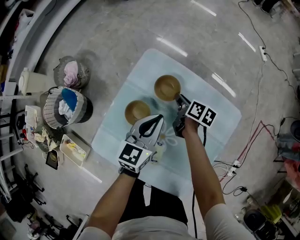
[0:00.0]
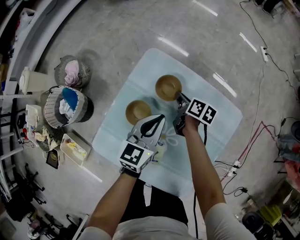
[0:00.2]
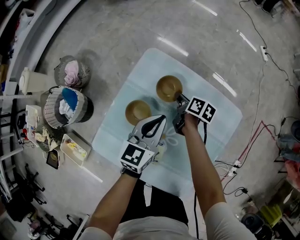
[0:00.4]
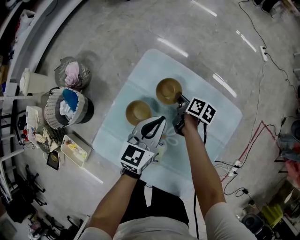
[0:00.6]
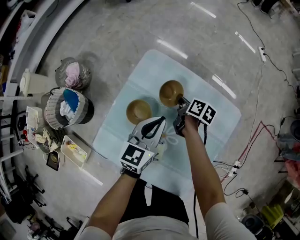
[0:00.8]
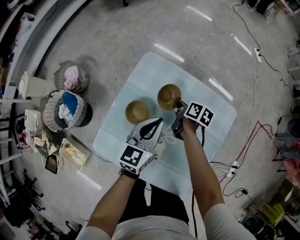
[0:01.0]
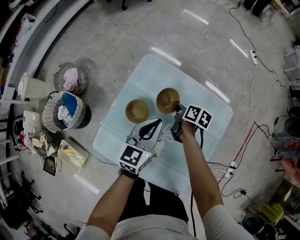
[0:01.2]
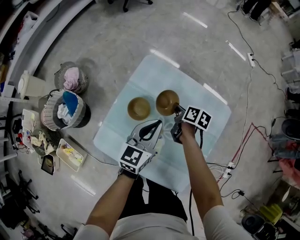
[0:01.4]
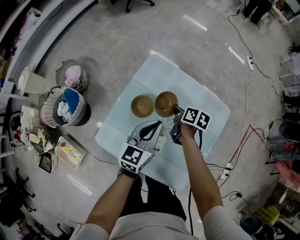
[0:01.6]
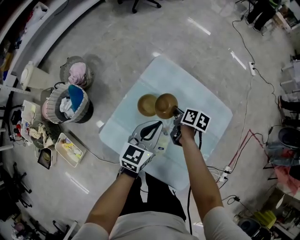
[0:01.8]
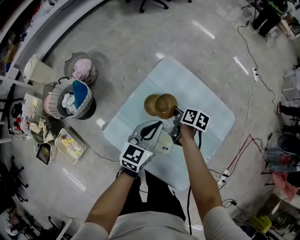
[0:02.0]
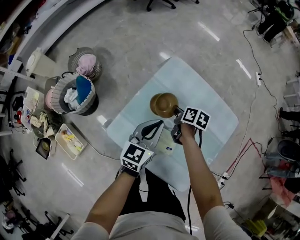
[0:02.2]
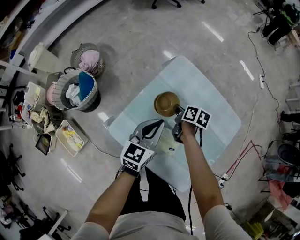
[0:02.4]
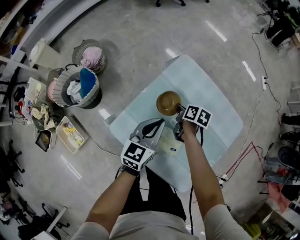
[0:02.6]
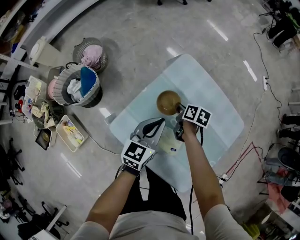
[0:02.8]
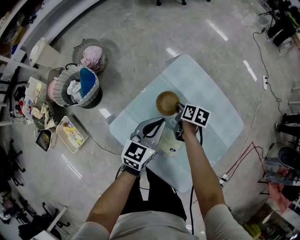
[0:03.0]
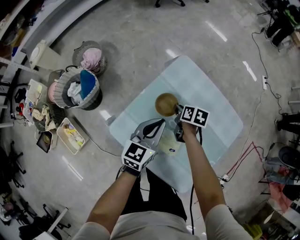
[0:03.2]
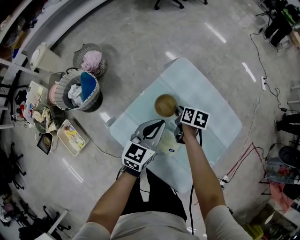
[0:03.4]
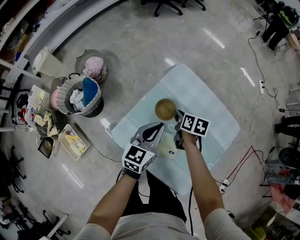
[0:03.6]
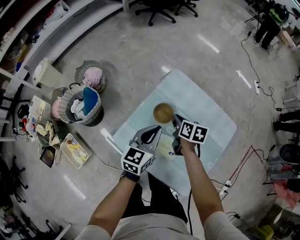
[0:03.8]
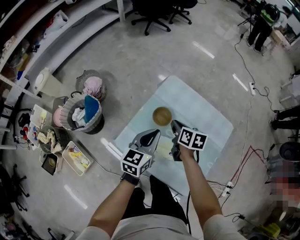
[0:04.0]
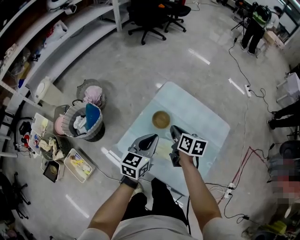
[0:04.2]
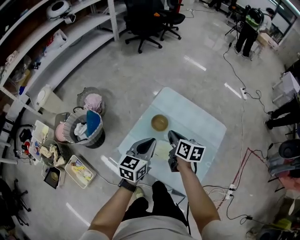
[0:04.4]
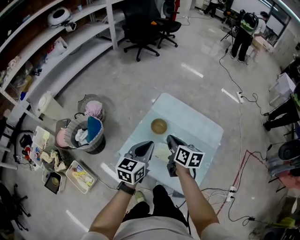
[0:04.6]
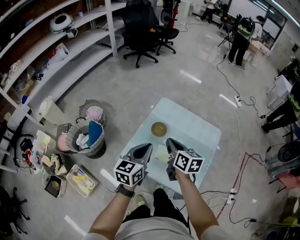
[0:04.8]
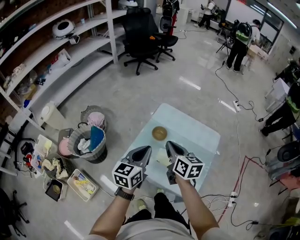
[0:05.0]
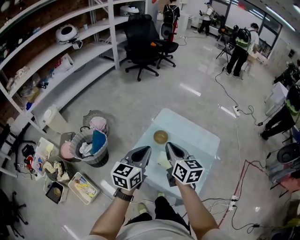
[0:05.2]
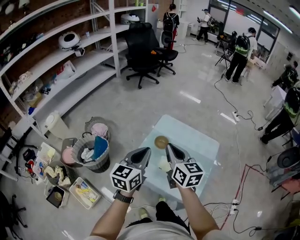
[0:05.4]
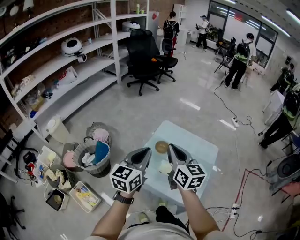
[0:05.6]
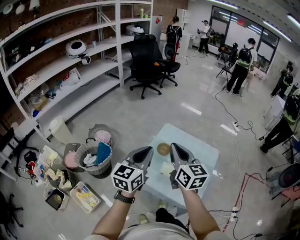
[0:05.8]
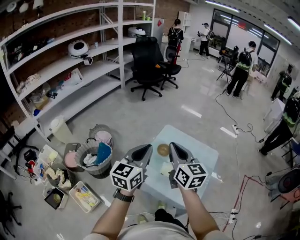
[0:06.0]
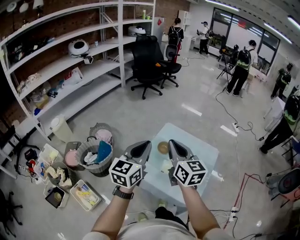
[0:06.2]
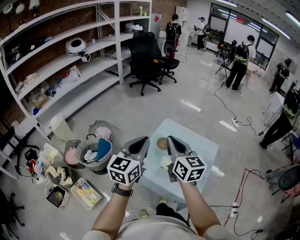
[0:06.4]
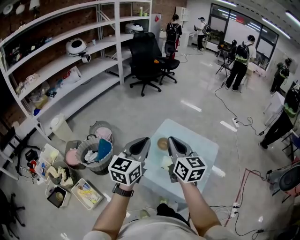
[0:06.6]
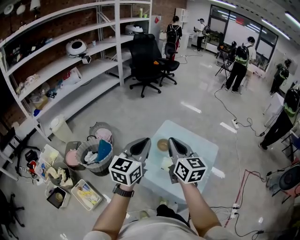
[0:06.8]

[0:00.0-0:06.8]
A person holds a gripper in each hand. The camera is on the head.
0:00.0 to 0:01.4: Both grippers move backward, about 5 cm.
0:01.4 to 0:02.8: Both grippers travel together to the left, approximately 10 cm.
0:02.8 to 0:04.0: The left gripper travels upward by about 5 cm. Meanwhile the right gripper heads upward, covering roughly 15 cm.
0:04.0 to 0:05.4: Both grippers travel together upward and backward, some 30 cm. The right gripper rotates some 40 degrees.
0:05.4 to 0:06.8: The grippers both shift upward by approximately 5 cm.

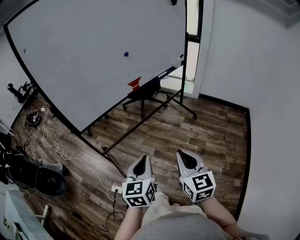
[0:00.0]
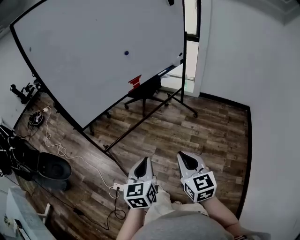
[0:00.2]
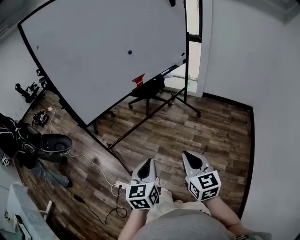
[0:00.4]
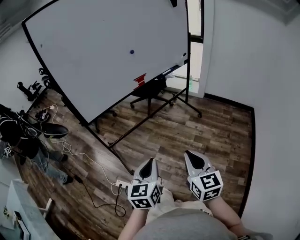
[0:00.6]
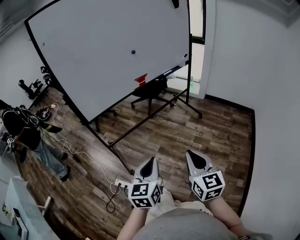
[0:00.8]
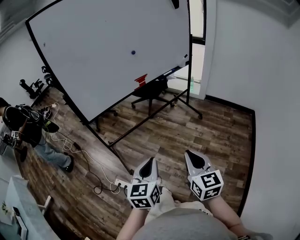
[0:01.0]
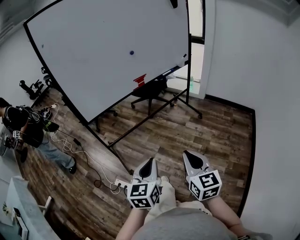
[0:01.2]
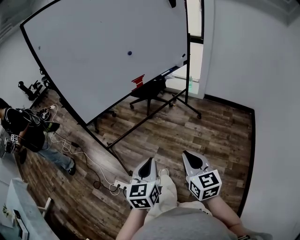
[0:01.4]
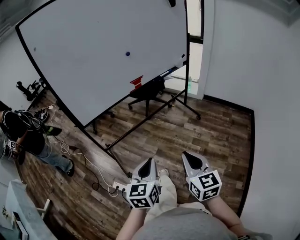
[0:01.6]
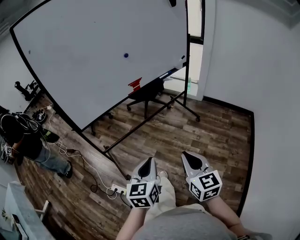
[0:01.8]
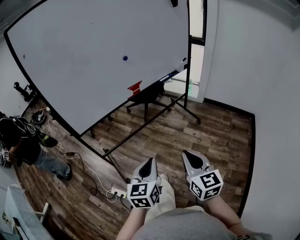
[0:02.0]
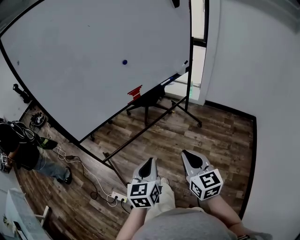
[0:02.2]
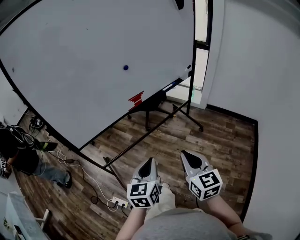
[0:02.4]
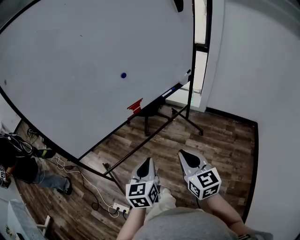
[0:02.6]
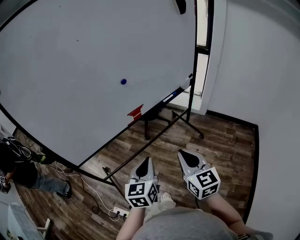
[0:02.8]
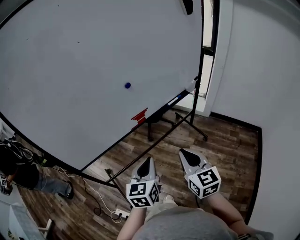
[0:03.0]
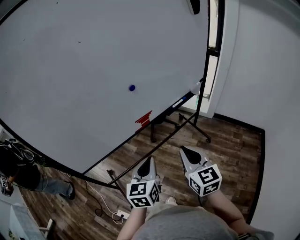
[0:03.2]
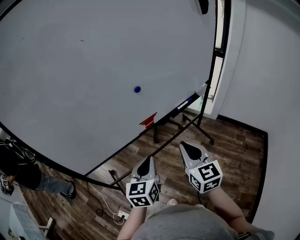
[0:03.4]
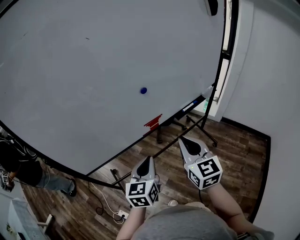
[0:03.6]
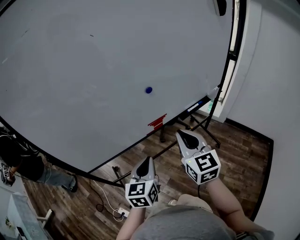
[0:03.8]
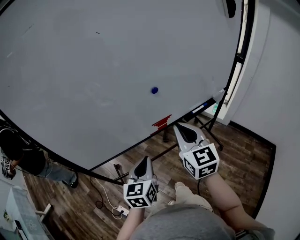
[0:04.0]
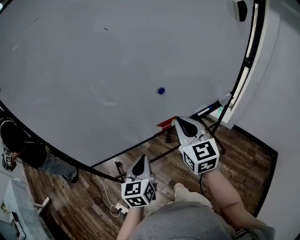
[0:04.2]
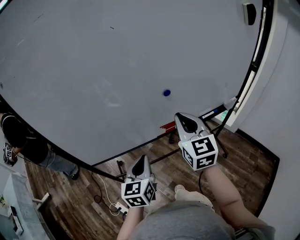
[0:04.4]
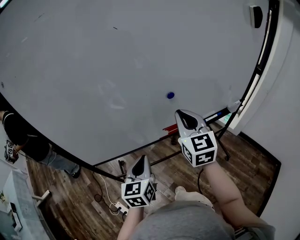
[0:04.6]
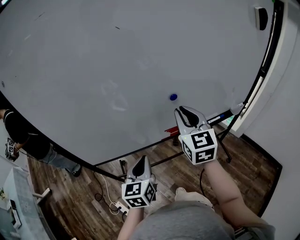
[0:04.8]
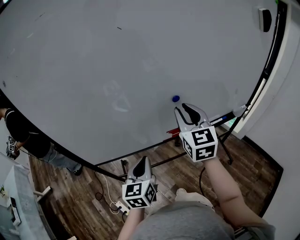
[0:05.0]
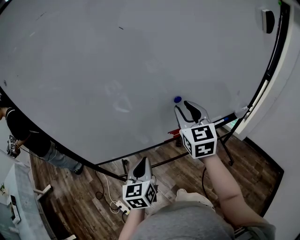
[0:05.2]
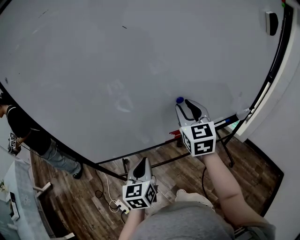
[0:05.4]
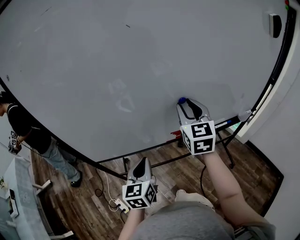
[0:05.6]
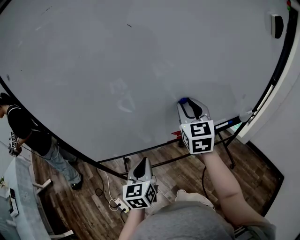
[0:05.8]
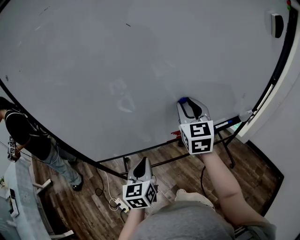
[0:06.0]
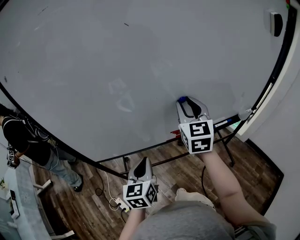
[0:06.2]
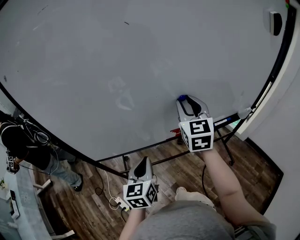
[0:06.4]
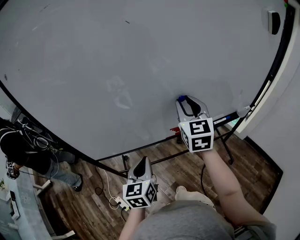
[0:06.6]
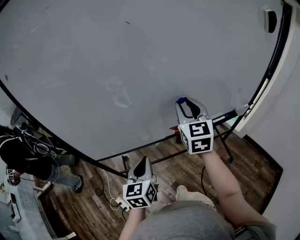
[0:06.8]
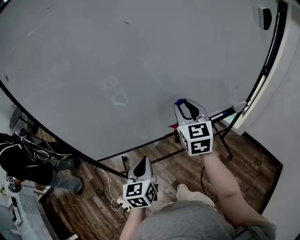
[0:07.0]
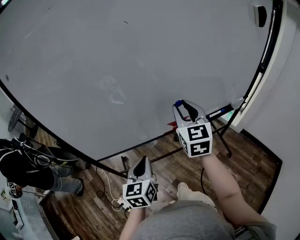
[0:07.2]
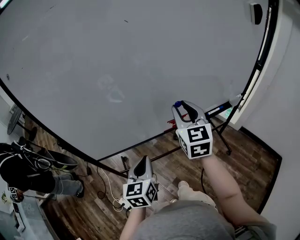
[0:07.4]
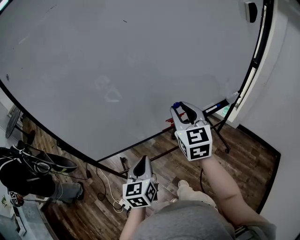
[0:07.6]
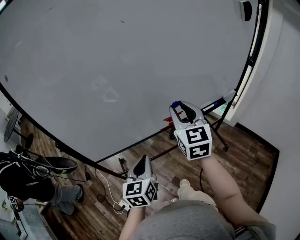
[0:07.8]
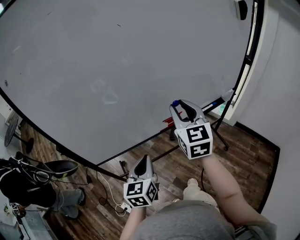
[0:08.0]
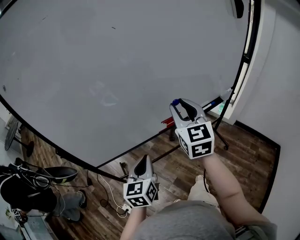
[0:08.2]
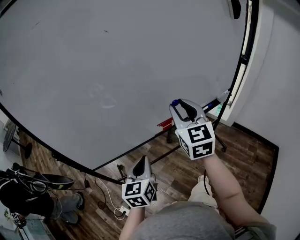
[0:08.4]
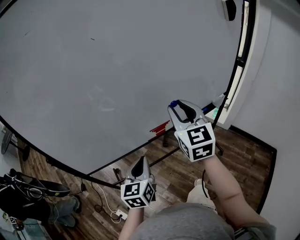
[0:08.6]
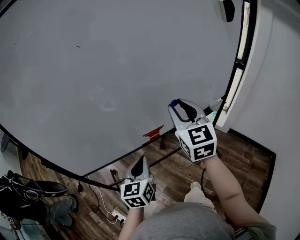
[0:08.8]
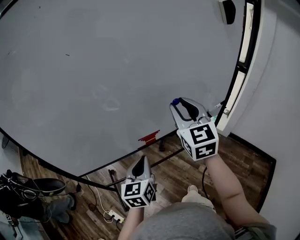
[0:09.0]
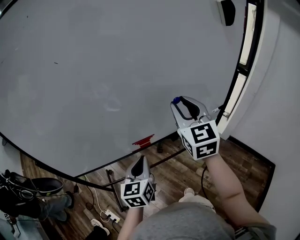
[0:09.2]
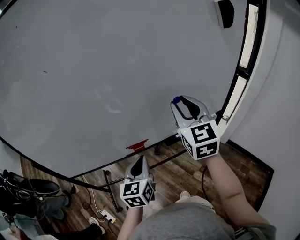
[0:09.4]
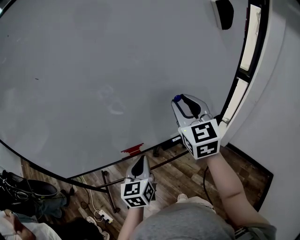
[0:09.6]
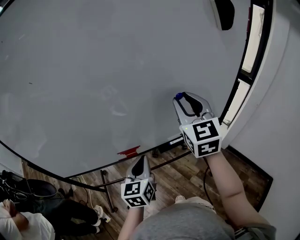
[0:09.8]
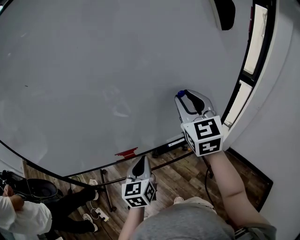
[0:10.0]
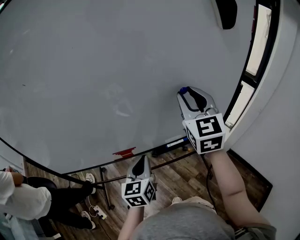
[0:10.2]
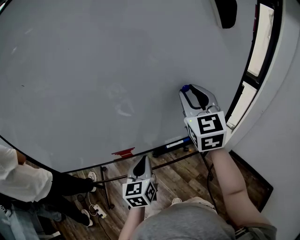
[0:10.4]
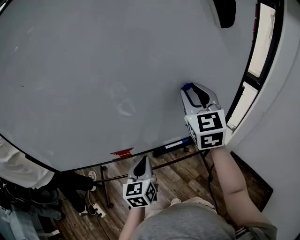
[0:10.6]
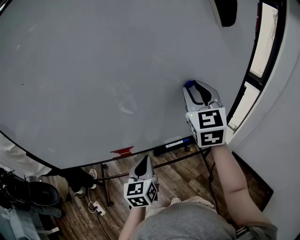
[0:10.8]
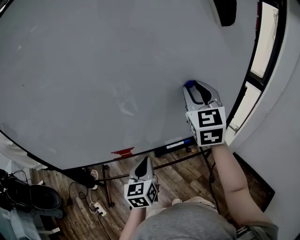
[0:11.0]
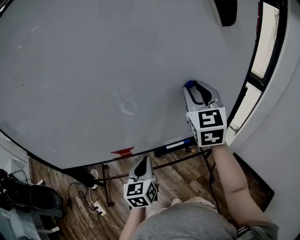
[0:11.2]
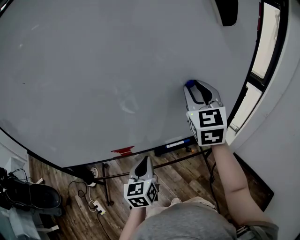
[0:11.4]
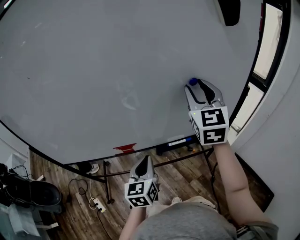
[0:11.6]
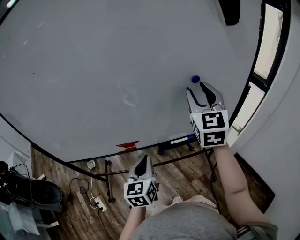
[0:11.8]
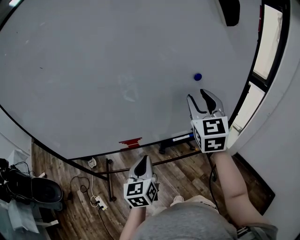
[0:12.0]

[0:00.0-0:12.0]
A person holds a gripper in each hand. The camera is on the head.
0:00.0 to 0:01.6: The left gripper goes some 10 cm backward and to the right, while the right gripper moves to the right, roughly 5 cm.
0:01.6 to 0:03.0: Both grippers travel together forward, about 35 cm.
0:03.0 to 0:04.4: The right gripper shifts some 25 cm forward, while the left gripper travels forward and to the left by about 15 cm.
0:04.4 to 0:06.0: The right gripper moves forward, some 10 cm, and opens.
0:06.0 to 0:07.6: The right gripper heads backward, covering about 10 cm; the left gripper travels backward by about 5 cm.
0:07.6 to 0:09.0: The right gripper heads to the right, covering about 15 cm. Meanwhile the left gripper moves to the right and forward, roughly 15 cm.
0:09.0 to 0:10.4: The two grippers go roughly 20 cm to the right and forward.
0:10.4 to 0:12.0: The left gripper is displaced backward by some 5 cm.

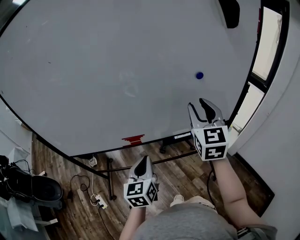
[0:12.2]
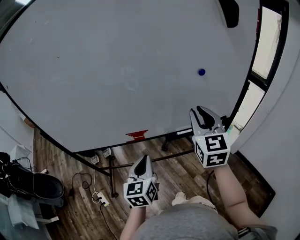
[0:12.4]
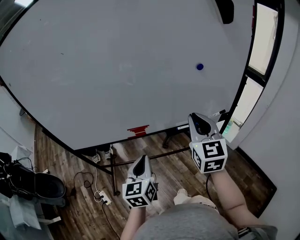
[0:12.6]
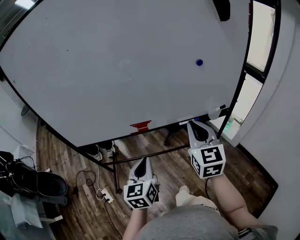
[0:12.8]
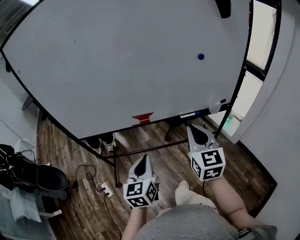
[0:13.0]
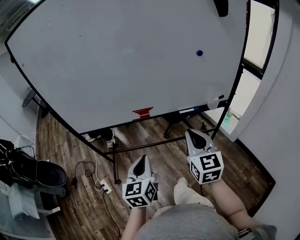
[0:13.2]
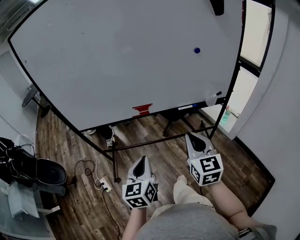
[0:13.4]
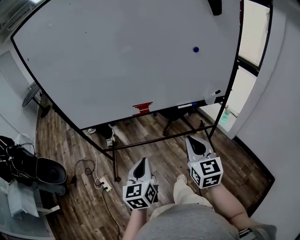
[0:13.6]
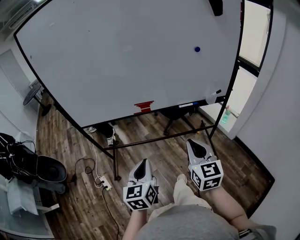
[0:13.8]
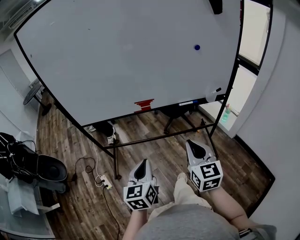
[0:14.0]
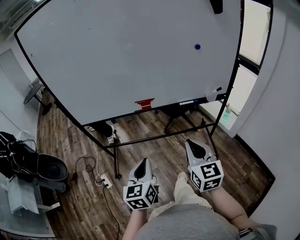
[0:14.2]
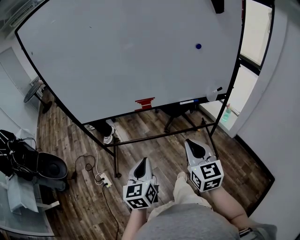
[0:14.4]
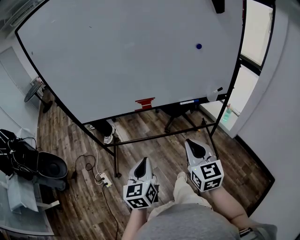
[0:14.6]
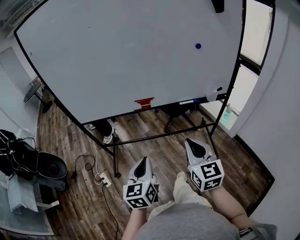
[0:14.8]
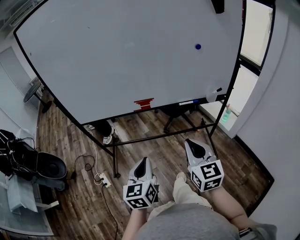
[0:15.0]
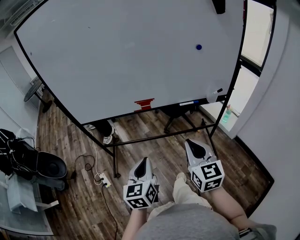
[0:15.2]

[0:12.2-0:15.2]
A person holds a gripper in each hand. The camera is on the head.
0:12.2 to 0:13.8: The left gripper is displaced backward by roughly 25 cm. Meanwhile the right gripper moves backward and downward, approximately 35 cm, and closes up.
0:13.8 to 0:15.2: The grippers stay close to where they were, moving slightly.

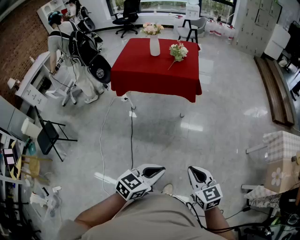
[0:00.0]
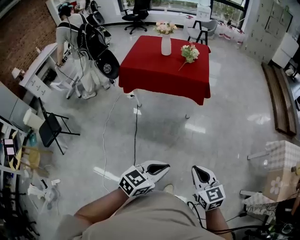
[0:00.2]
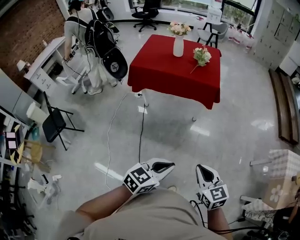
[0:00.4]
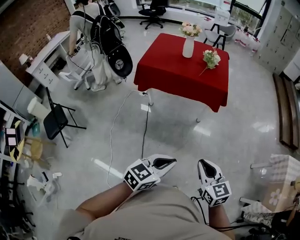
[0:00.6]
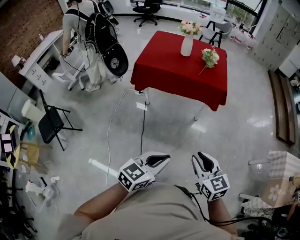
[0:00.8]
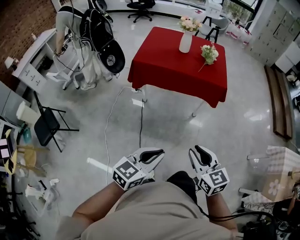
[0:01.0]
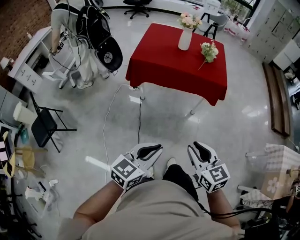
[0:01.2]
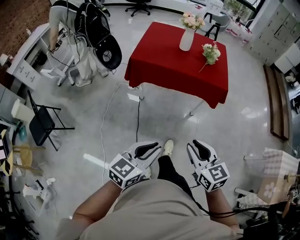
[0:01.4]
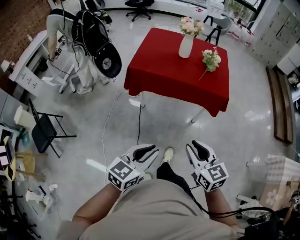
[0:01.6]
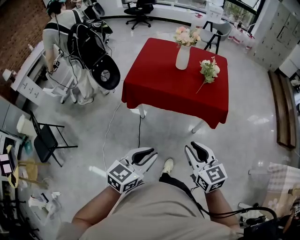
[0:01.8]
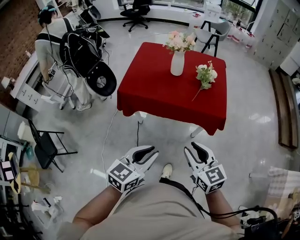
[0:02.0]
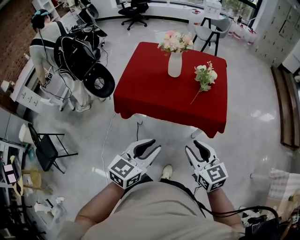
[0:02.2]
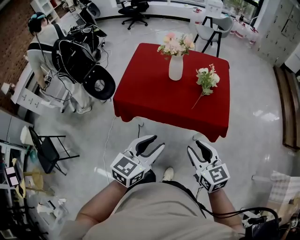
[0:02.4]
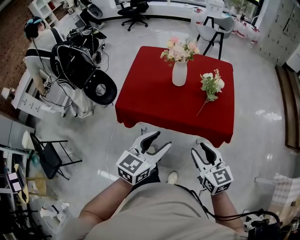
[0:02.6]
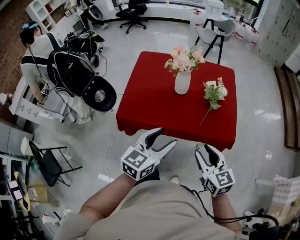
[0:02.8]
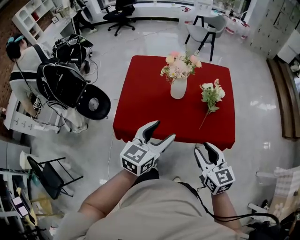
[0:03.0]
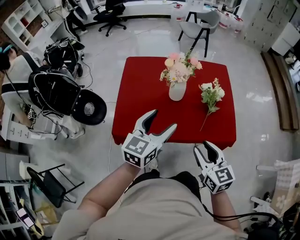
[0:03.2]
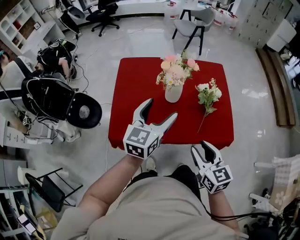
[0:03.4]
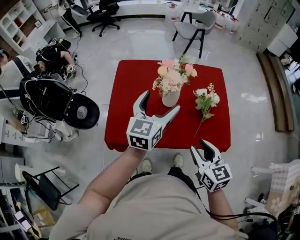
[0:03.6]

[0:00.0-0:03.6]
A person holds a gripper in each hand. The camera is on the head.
0:00.0 to 0:01.8: The two grippers travel together, forward and to the left, some 40 cm. The right gripper opens up.
0:01.8 to 0:03.6: The left gripper is displaced forward by about 60 cm, and opens; the right gripper goes some 40 cm forward.
